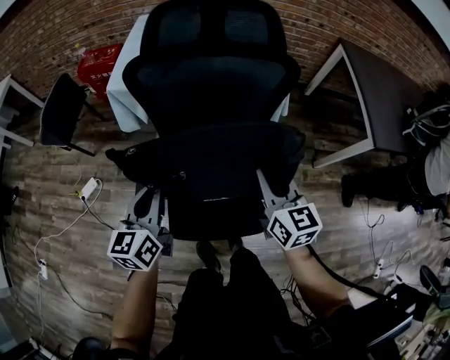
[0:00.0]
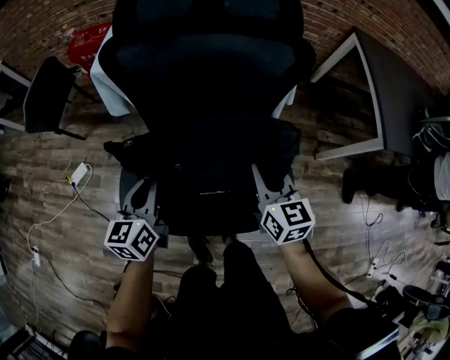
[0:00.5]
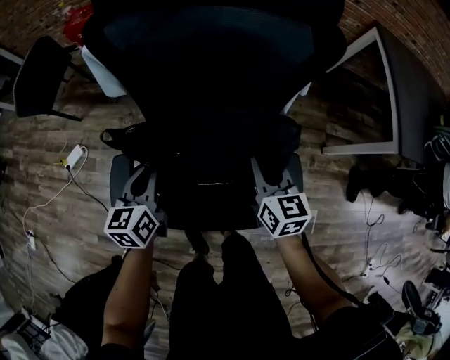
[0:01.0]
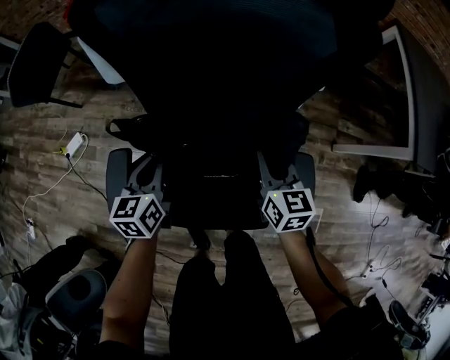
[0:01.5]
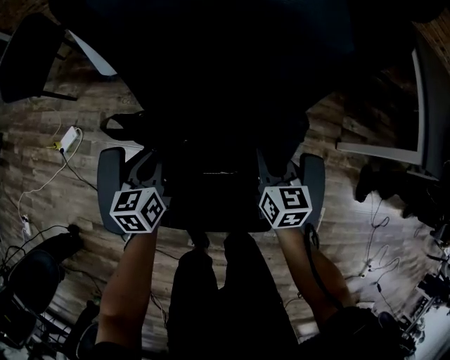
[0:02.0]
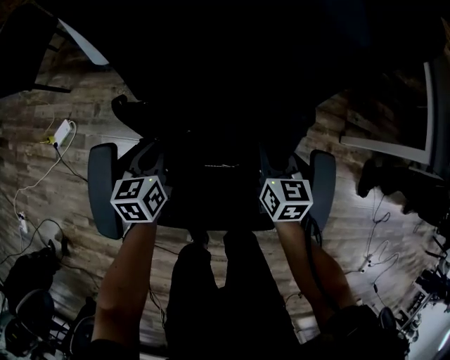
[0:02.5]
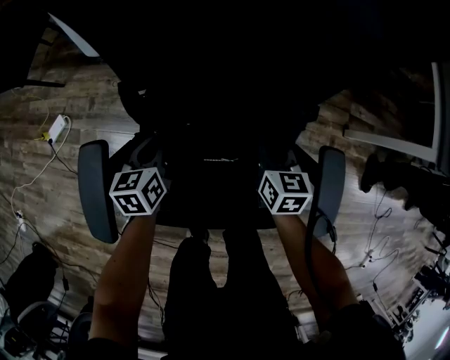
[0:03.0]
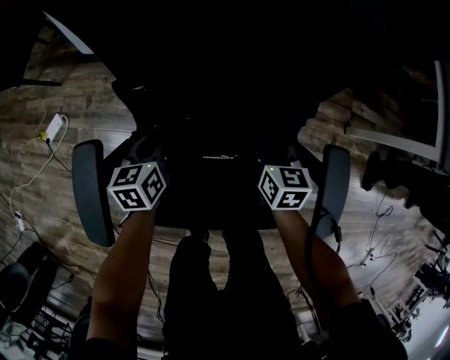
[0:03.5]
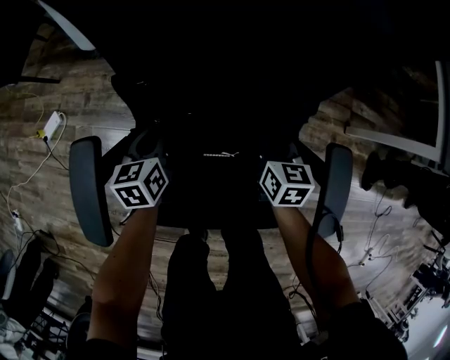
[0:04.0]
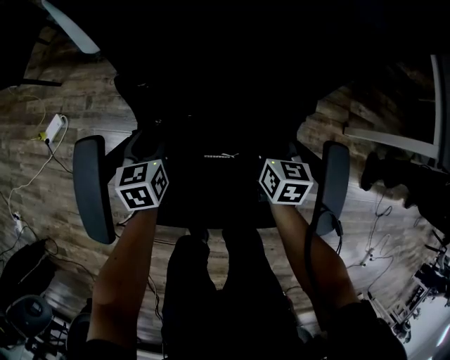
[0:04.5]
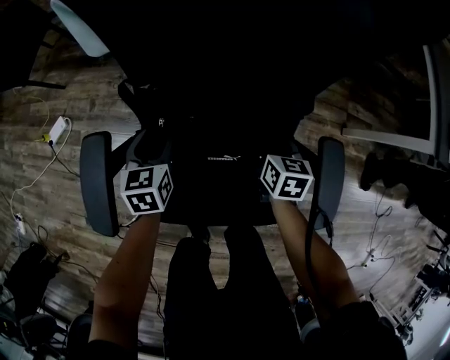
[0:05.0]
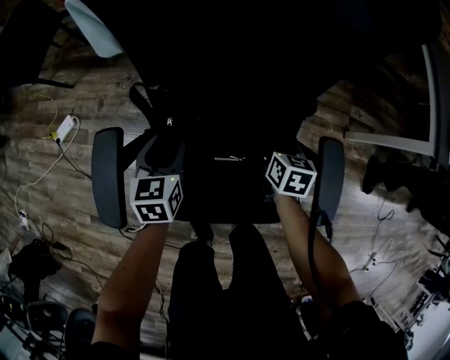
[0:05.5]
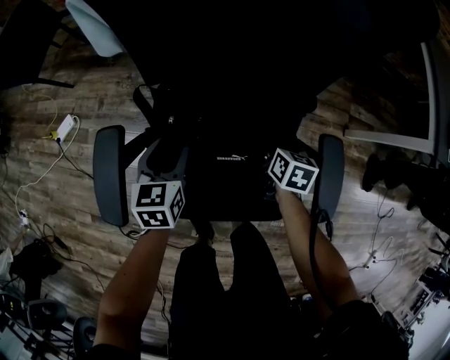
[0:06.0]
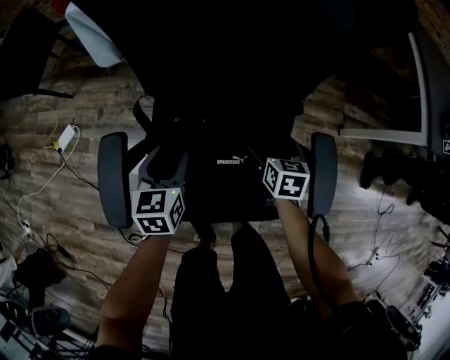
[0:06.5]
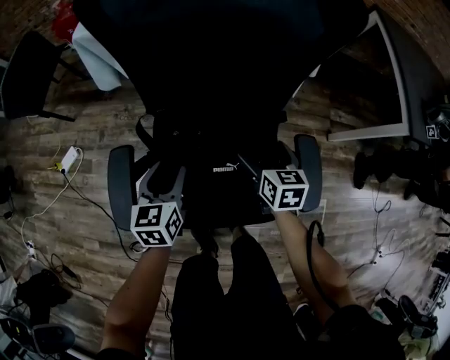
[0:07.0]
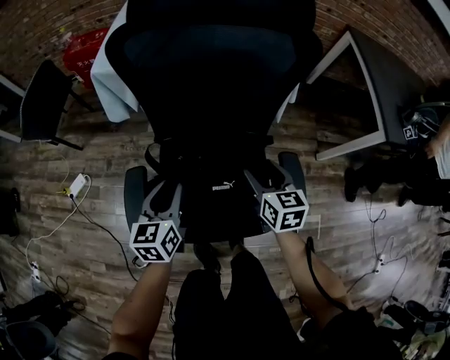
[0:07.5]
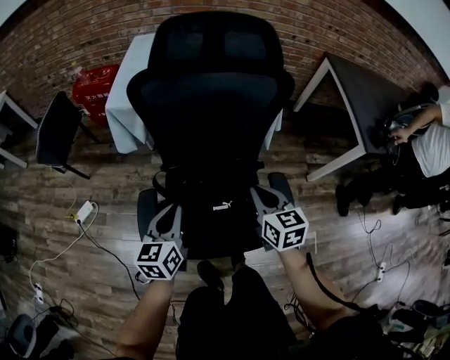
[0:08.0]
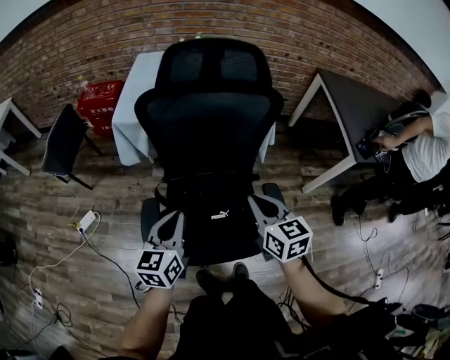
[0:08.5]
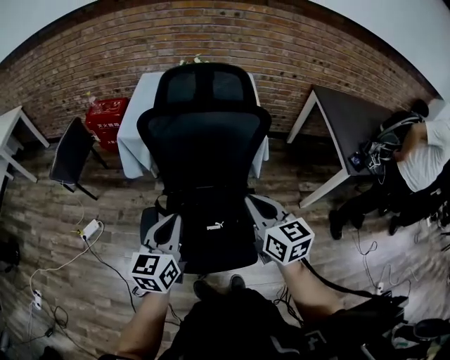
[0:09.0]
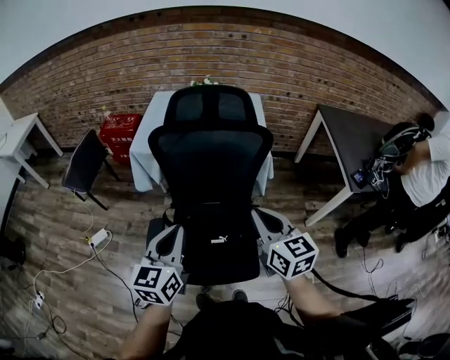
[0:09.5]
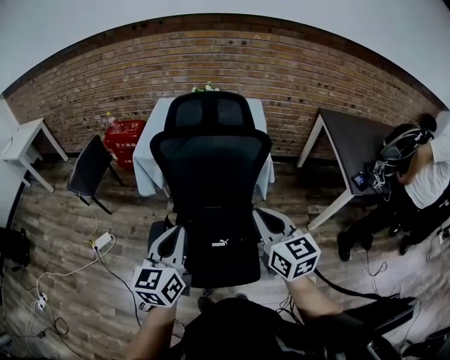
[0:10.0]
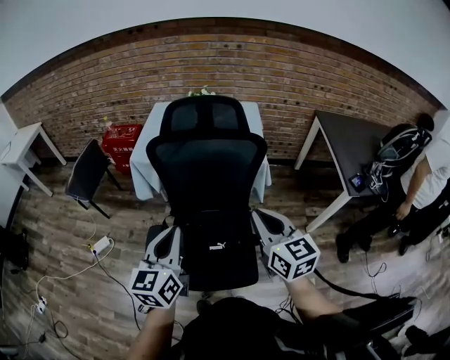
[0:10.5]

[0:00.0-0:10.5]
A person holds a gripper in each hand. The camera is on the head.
0:00.0 to 0:02.0: The two grippers go some 30 cm downward. The left gripper changes its angle by some 20 degrees.
0:02.0 to 0:04.0: Both grippers move downward, some 10 cm.
0:04.0 to 0:06.5: The right gripper opens its fingers. Meanwhile the left gripper travels upward and backward by approximately 10 cm, and opens its fingers.
0:06.5 to 0:08.5: Both grippers move upward, some 35 cm. The left gripper turns by approximately 20 degrees, and closes its fingers. The right gripper swivels approximately 30 degrees, and closes.
0:08.5 to 0:10.5: Both grippers travel together upward, some 15 cm.

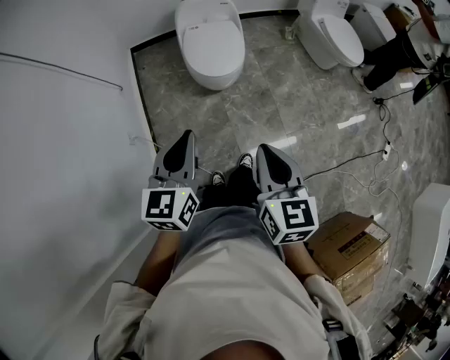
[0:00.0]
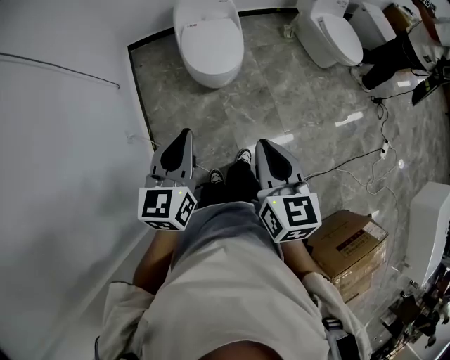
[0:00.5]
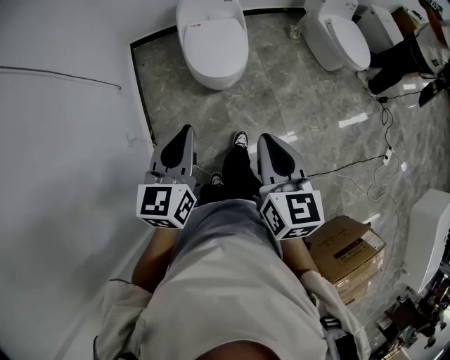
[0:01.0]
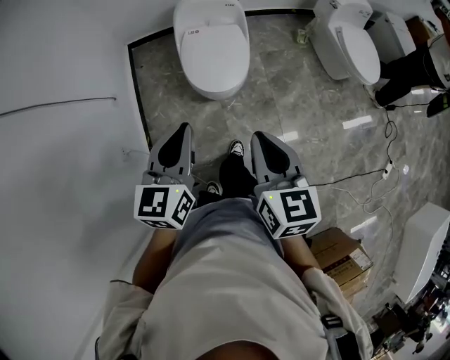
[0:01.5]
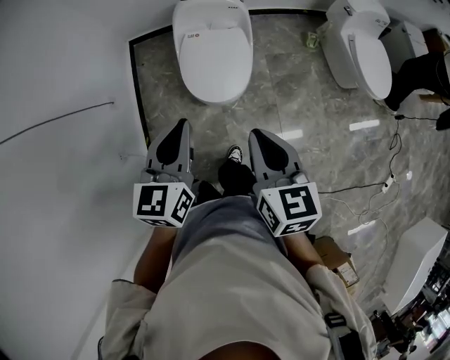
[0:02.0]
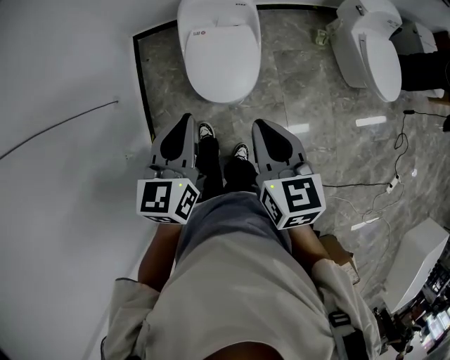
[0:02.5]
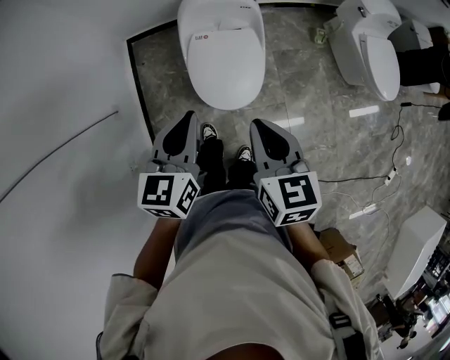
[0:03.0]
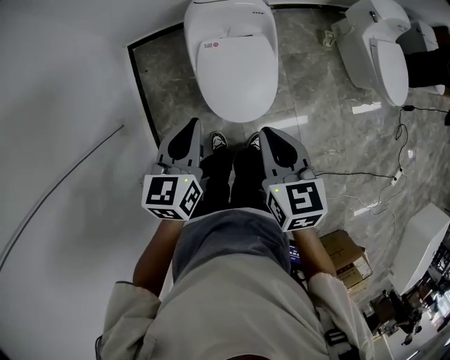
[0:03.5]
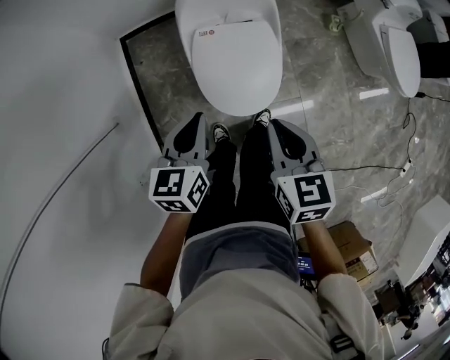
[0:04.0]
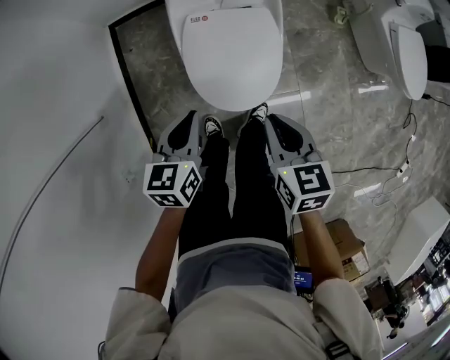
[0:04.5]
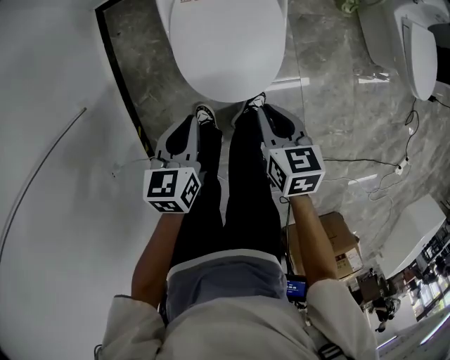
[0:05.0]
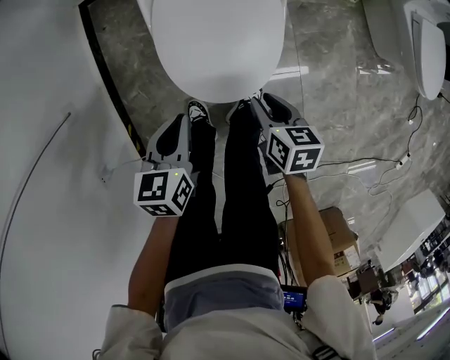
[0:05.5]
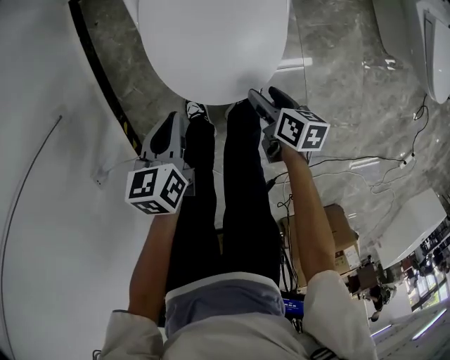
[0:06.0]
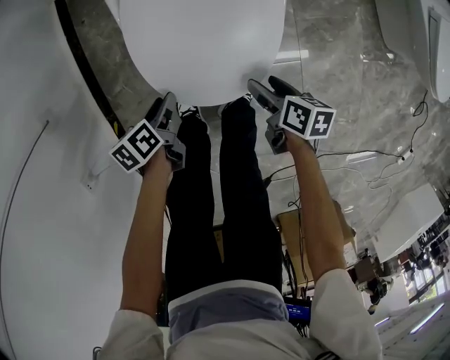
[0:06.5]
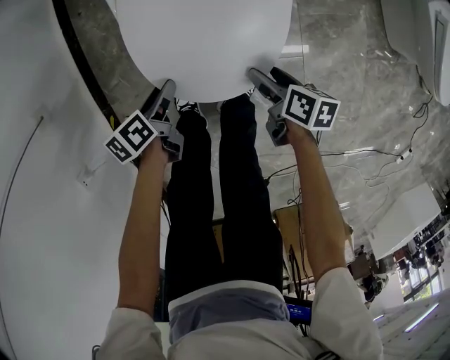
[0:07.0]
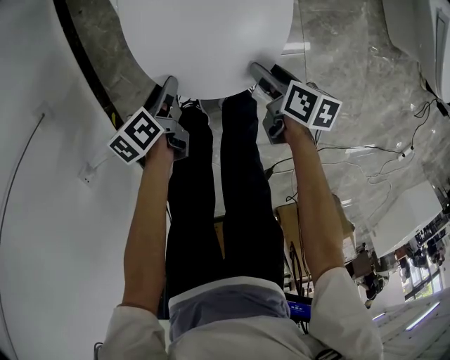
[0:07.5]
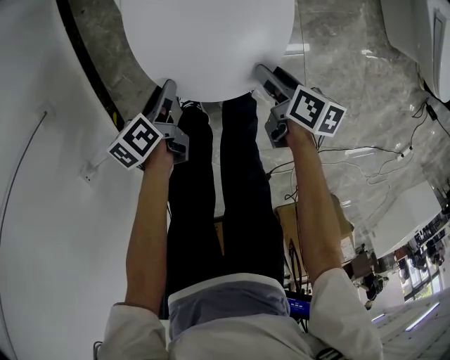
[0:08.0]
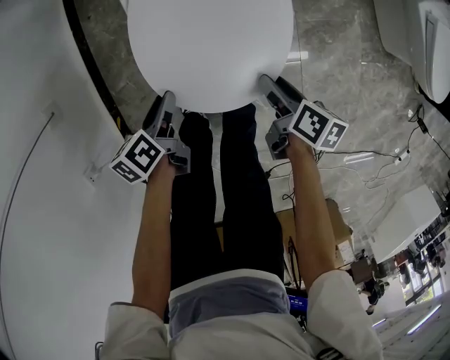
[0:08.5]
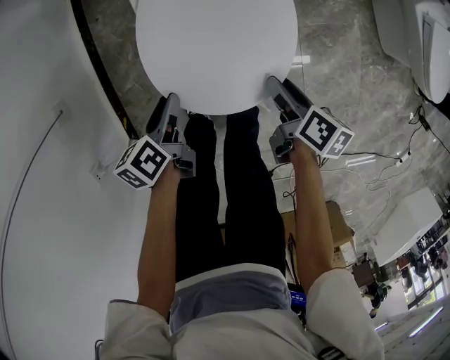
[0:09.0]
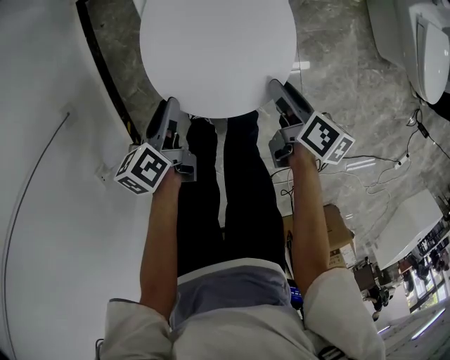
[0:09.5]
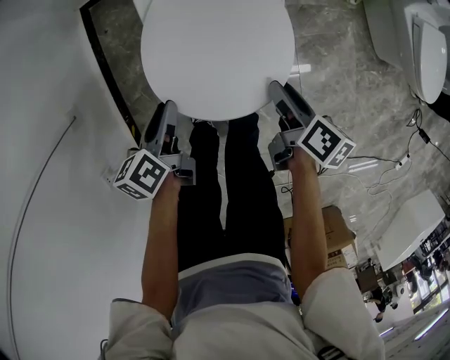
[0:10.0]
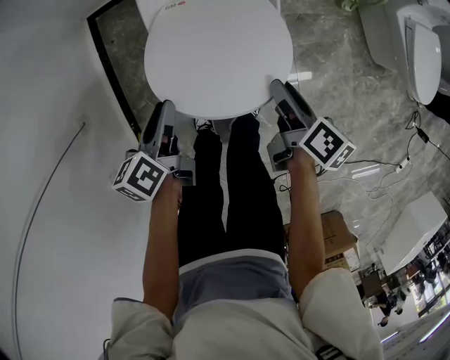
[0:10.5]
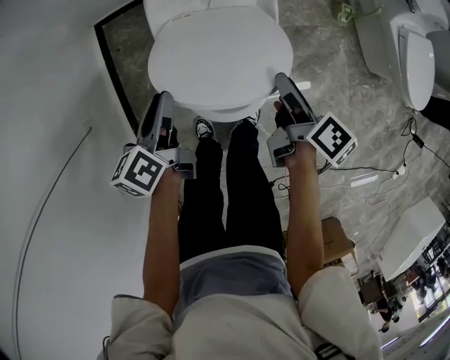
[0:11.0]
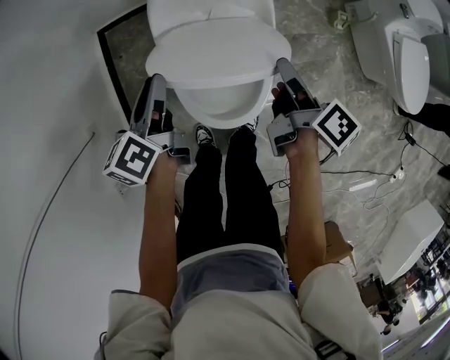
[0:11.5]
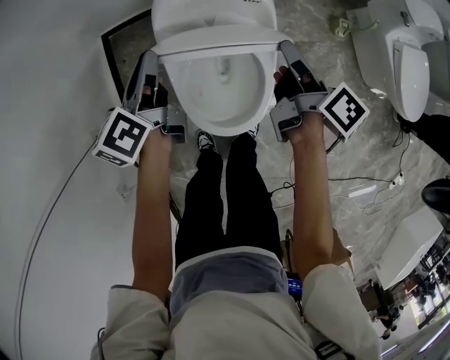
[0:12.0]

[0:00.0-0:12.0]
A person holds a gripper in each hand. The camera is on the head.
0:00.0 to 0:02.0: The grippers both shift forward by about 35 cm.
0:02.0 to 0:04.0: The right gripper heads forward, downward and to the left, covering roughly 25 cm; the left gripper moves downward, forward and to the left, some 30 cm.
0:04.0 to 0:06.0: Both grippers move downward, approximately 35 cm. The right gripper turns by some 40 degrees, and opens; the left gripper changes its angle by roughly 20 degrees.
0:06.0 to 0:08.0: The left gripper goes about 10 cm downward, turns by approximately 30 degrees, and opens its fingers.
0:08.0 to 0:10.0: Both grippers move upward, about 15 cm.
0:10.0 to 0:12.0: Both grippers move forward and upward, about 25 cm. The right gripper rotates about 20 degrees, while the left gripper changes its angle by approximately 20 degrees.

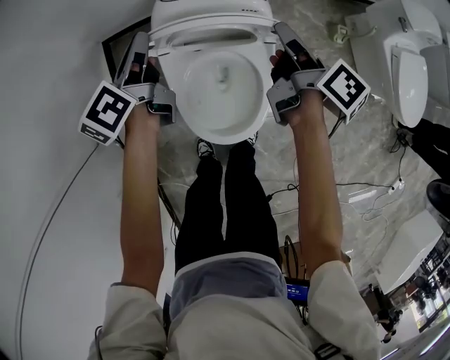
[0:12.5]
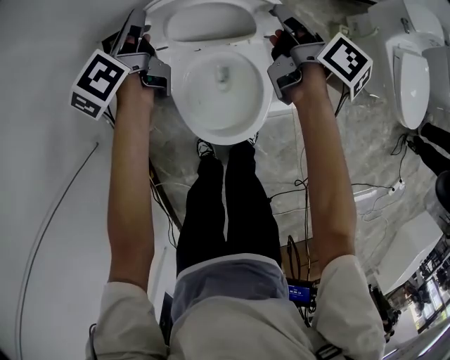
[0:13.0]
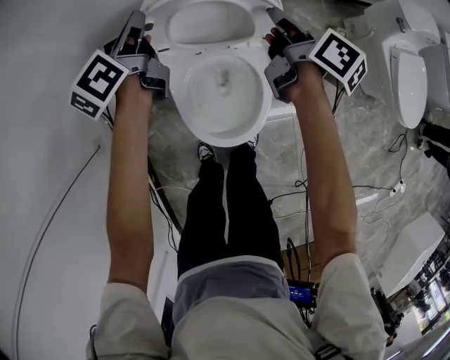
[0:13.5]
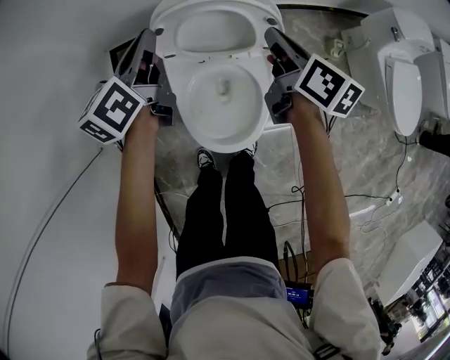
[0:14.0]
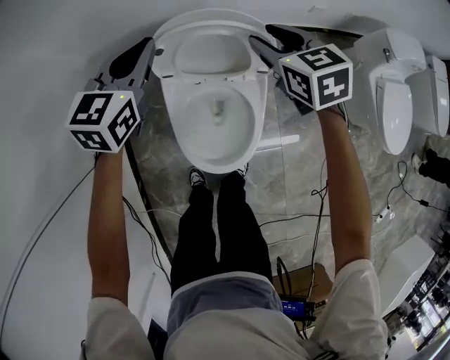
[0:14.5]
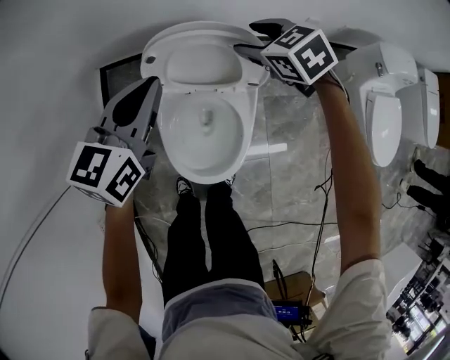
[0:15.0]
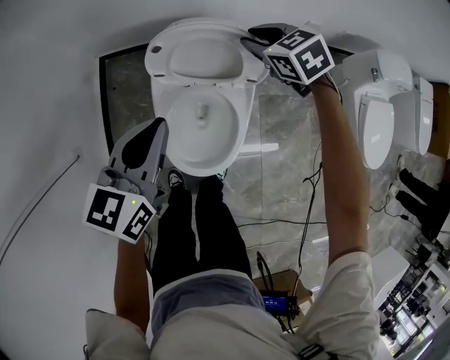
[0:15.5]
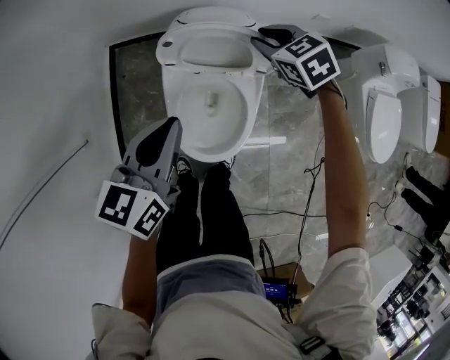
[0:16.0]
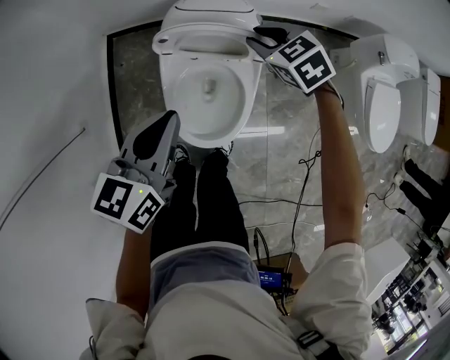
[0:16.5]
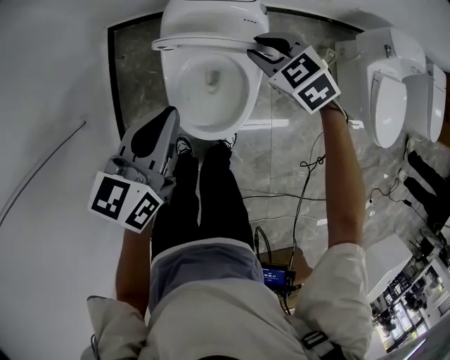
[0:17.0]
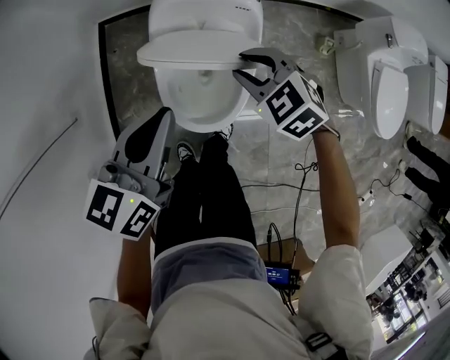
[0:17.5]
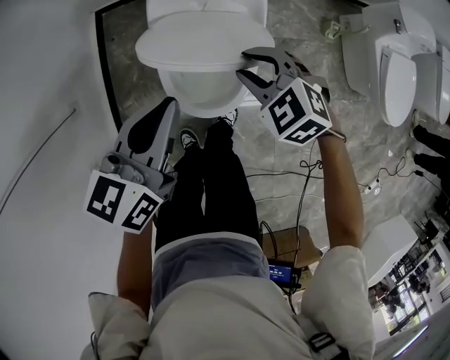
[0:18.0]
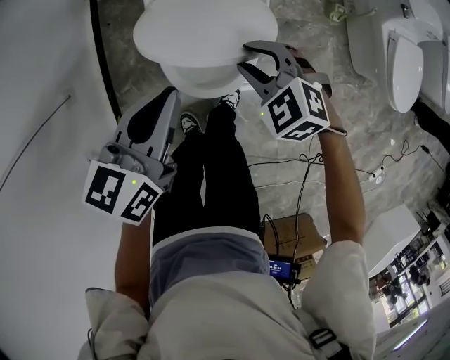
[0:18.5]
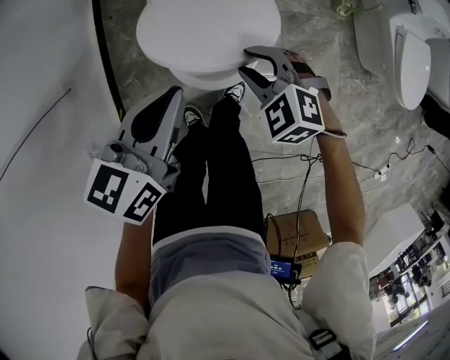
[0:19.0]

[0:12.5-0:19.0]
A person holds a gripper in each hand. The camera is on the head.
0:12.5 to 0:14.5: The right gripper shifts about 10 cm forward and upward, rotates around the line of its fingers by roughly 80 degrees, counterclockwise from behind, and closes and opens again, while the left gripper heads upward, covering roughly 10 cm, and rolls clockwise, seen from behind, by roughly 50 degrees.
0:14.5 to 0:17.0: The left gripper goes about 20 cm backward, and turns by roughly 20 degrees, while the right gripper is displaced backward by about 10 cm, and rotates some 30 degrees.
0:17.0 to 0:19.0: The right gripper is displaced backward and downward by about 20 cm. The left gripper goes some 10 cm backward and downward.
